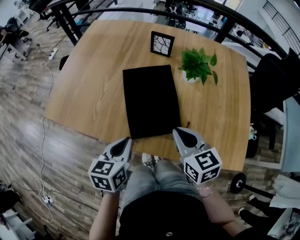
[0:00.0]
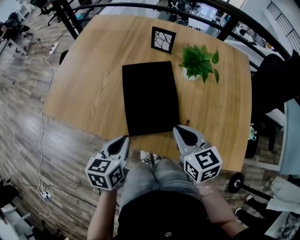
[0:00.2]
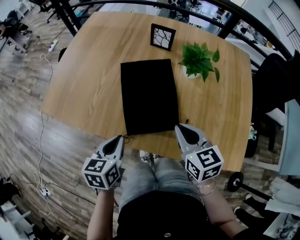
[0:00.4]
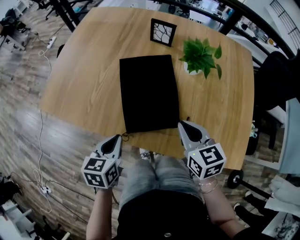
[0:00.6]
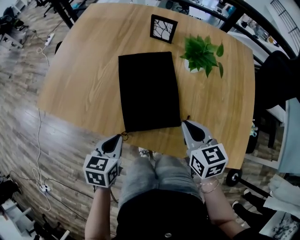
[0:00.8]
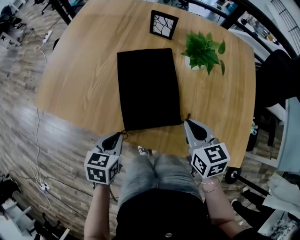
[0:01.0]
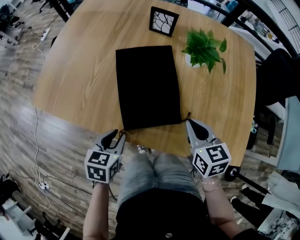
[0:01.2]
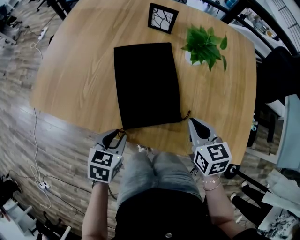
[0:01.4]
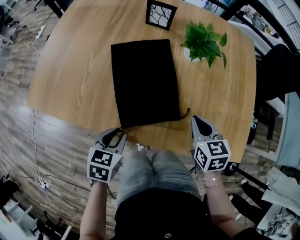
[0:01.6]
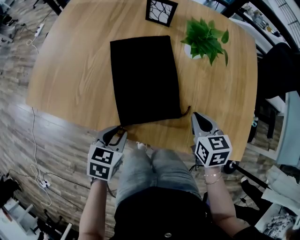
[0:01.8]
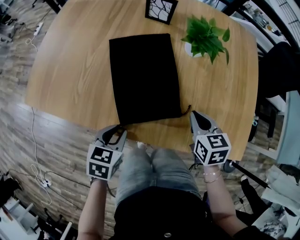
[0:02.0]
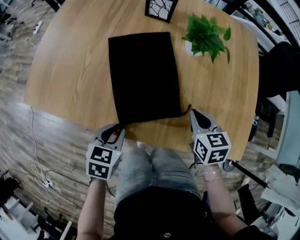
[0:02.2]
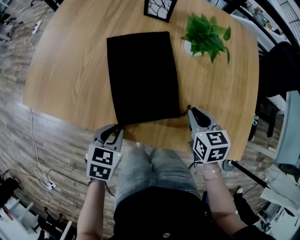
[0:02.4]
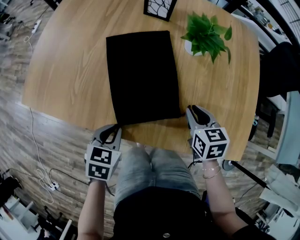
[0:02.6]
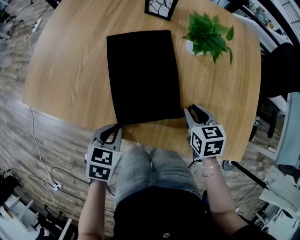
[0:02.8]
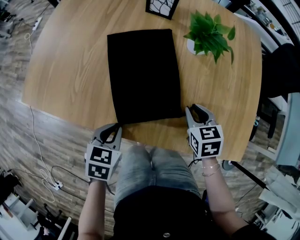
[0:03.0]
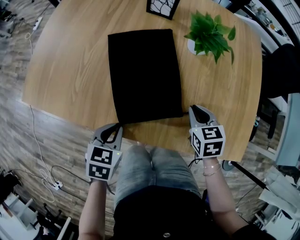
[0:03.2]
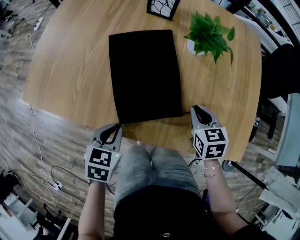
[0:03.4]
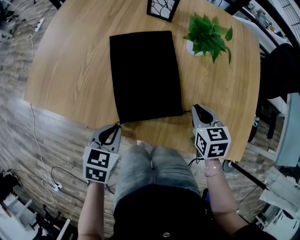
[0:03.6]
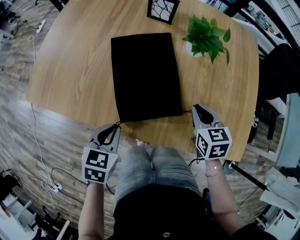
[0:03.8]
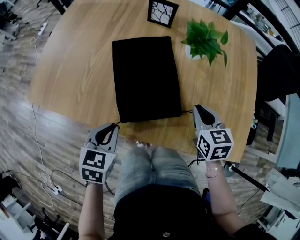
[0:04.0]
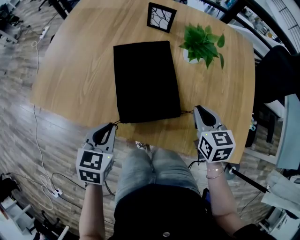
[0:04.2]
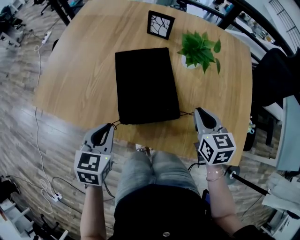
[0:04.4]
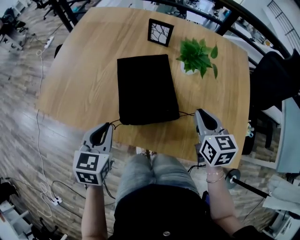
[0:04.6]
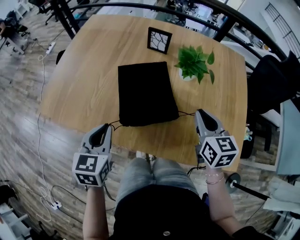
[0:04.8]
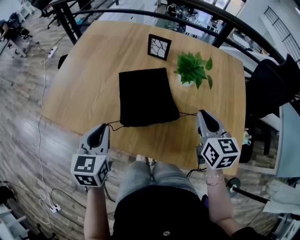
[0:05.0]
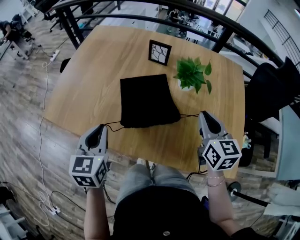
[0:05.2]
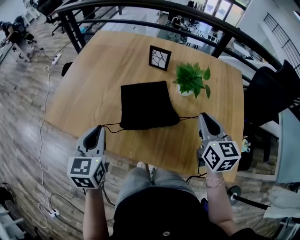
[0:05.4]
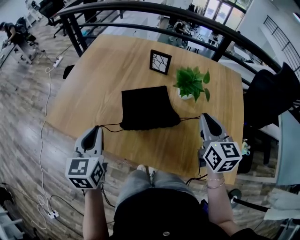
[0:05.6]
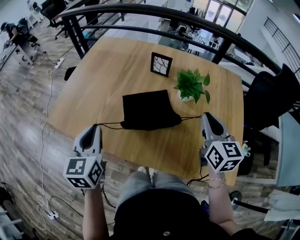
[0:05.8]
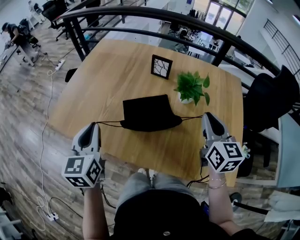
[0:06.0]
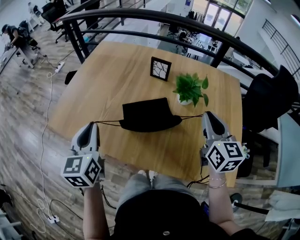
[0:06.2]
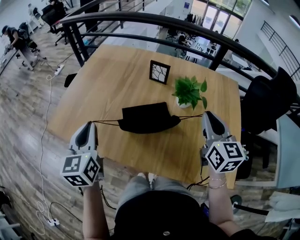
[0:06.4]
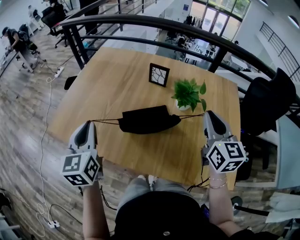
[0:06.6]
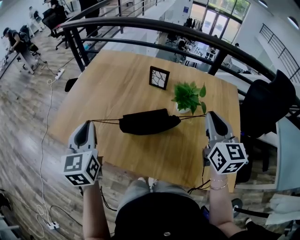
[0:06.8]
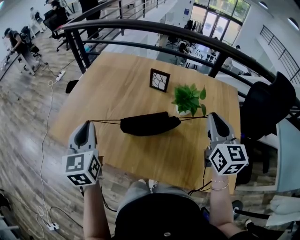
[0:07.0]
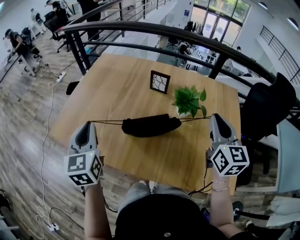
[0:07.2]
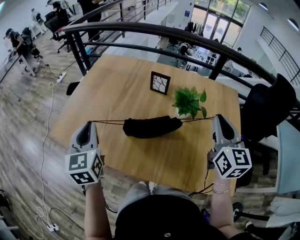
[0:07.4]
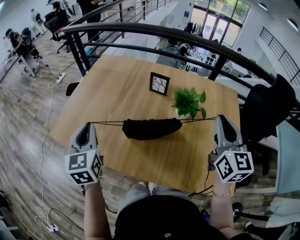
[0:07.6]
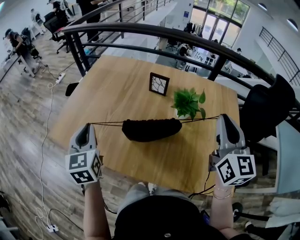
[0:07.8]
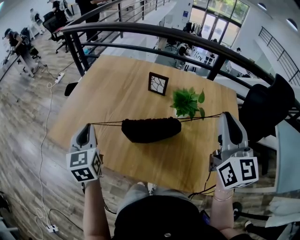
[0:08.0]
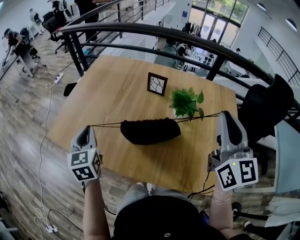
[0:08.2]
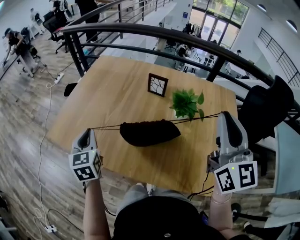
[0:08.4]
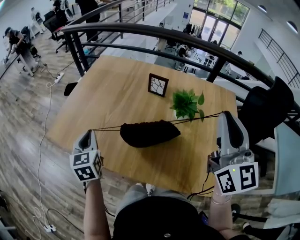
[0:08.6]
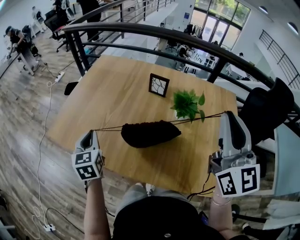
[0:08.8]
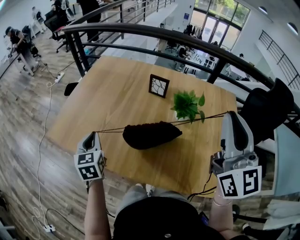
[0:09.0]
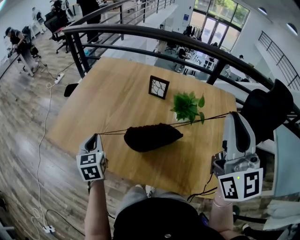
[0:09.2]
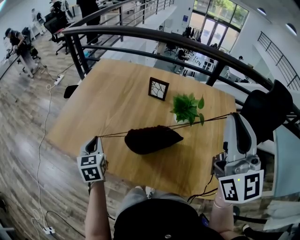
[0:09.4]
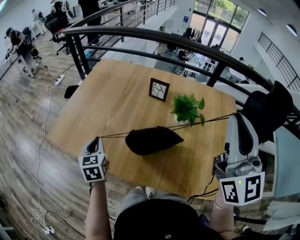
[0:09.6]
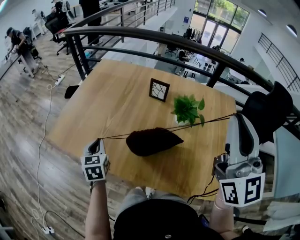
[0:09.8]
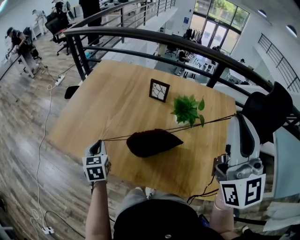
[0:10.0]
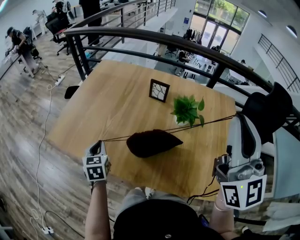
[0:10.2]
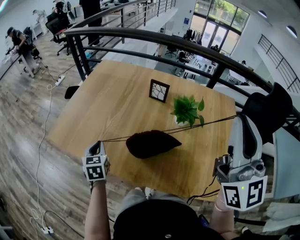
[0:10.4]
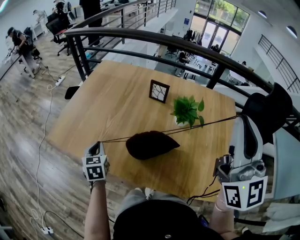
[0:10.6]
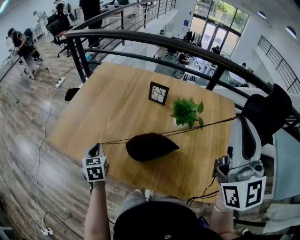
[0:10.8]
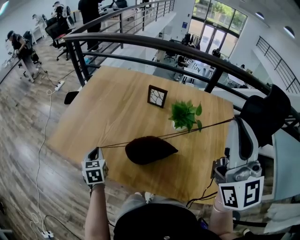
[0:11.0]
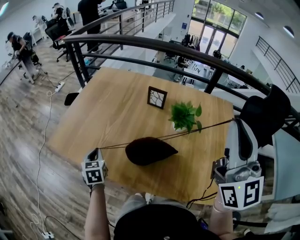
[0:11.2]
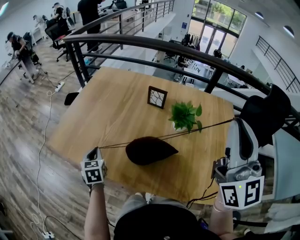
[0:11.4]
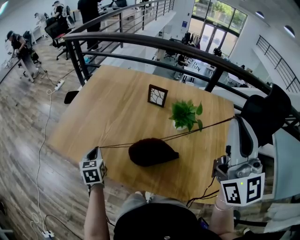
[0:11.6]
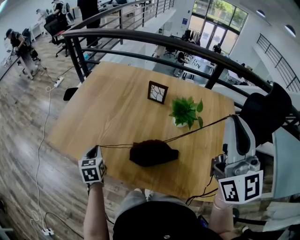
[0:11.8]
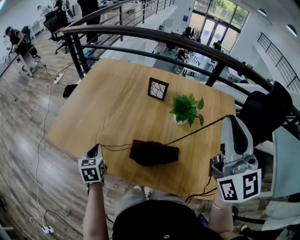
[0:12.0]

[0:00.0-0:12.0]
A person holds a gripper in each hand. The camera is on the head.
0:00.0 to 0:01.6: The left gripper shifts some 10 cm downward, swivels approximately 20 degrees, and opens its fingers. The right gripper is displaced to the right and downward by some 15 cm.
0:01.6 to 0:03.0: The right gripper is displaced downward by about 5 cm, and opens.
0:03.0 to 0:04.4: The grippers both shift upward by approximately 10 cm.
0:04.4 to 0:06.0: The right gripper shifts some 15 cm upward, and swivels about 20 degrees. Meanwhile the left gripper heads upward and to the left, covering roughly 15 cm, and turns by about 30 degrees.
0:06.0 to 0:07.6: The right gripper travels upward by roughly 10 cm; the left gripper moves roughly 5 cm.
0:07.6 to 0:09.0: The left gripper goes roughly 10 cm downward; the right gripper shifts about 10 cm upward.
0:09.0 to 0:10.4: The right gripper shifts by about 5 cm; the left gripper travels downward by about 5 cm.
0:10.4 to 0:12.0: The grippers move only a little.

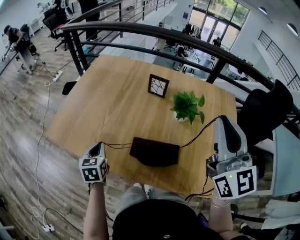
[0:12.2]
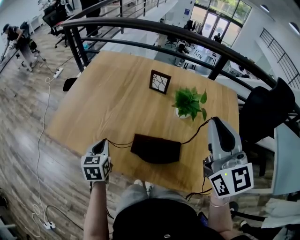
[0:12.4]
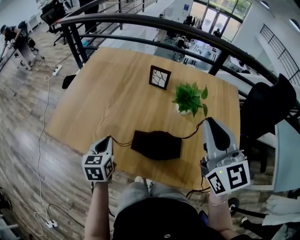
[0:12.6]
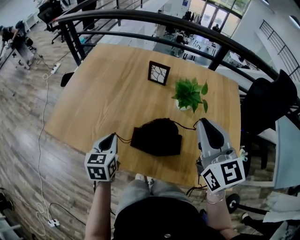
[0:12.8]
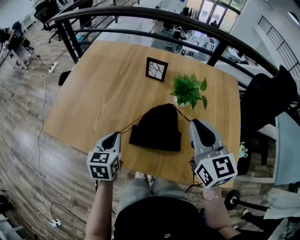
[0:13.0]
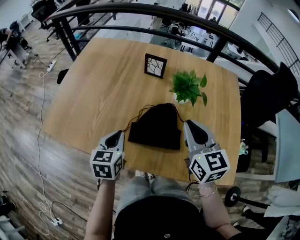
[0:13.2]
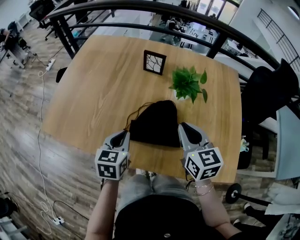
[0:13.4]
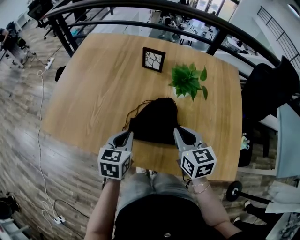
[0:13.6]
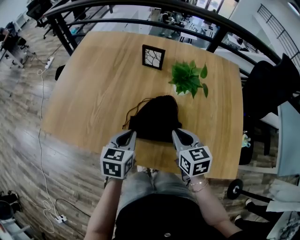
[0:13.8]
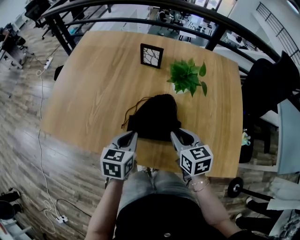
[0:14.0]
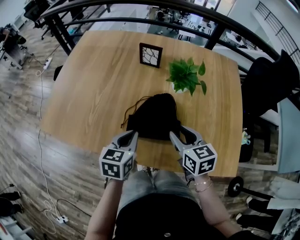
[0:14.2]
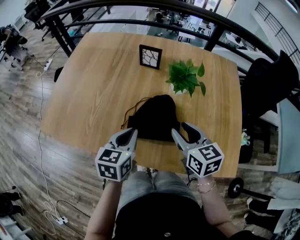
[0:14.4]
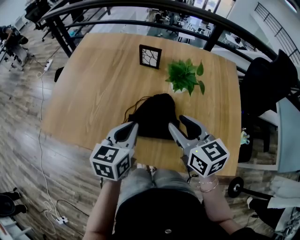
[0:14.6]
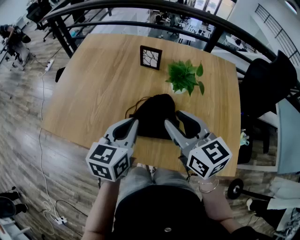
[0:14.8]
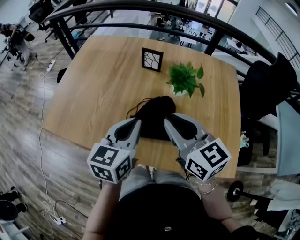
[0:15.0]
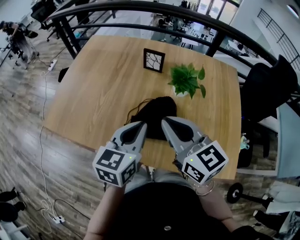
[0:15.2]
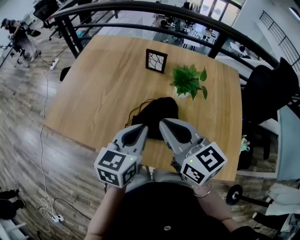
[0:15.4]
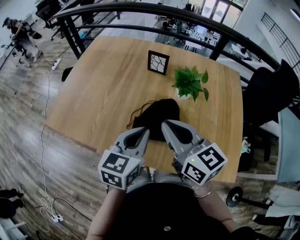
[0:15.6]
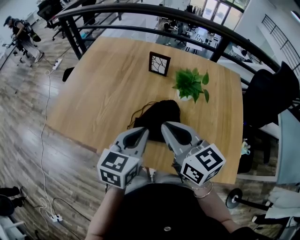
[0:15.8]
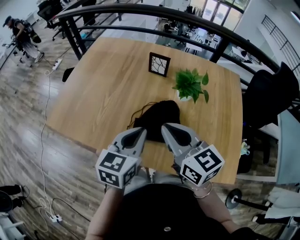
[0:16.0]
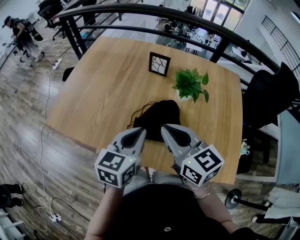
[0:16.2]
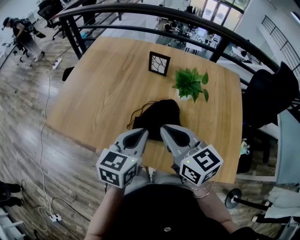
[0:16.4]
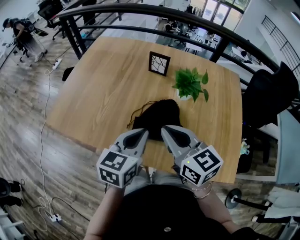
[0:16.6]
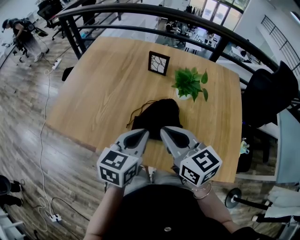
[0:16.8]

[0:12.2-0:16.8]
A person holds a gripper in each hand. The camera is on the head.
0:12.2 to 0:13.8: The right gripper heads downward, covering roughly 30 cm, and tips its fingers downward by approximately 40 degrees, while the left gripper travels to the right by some 15 cm, and turns by about 20 degrees.
0:13.8 to 0:15.2: The grippers both shift upward by approximately 15 cm. The right gripper changes its angle by approximately 30 degrees, and opens, then closes again.
0:15.2 to 0:16.8: The grippers move only a little.

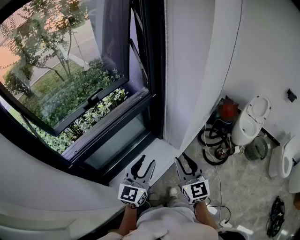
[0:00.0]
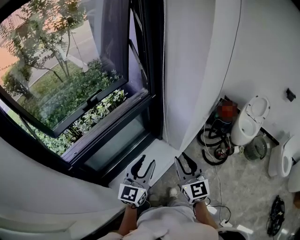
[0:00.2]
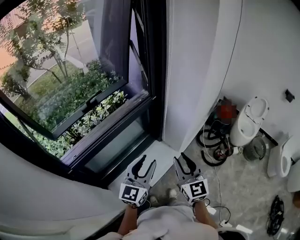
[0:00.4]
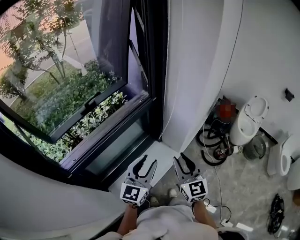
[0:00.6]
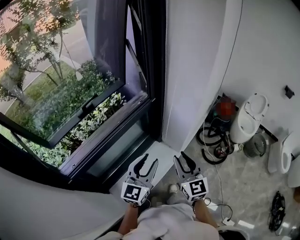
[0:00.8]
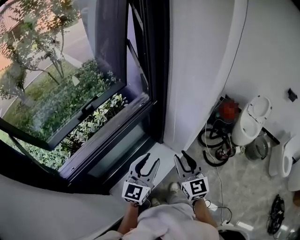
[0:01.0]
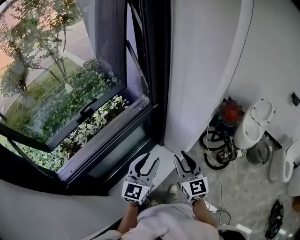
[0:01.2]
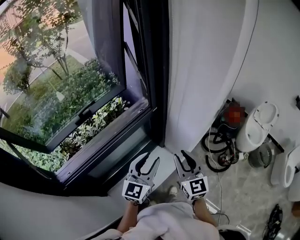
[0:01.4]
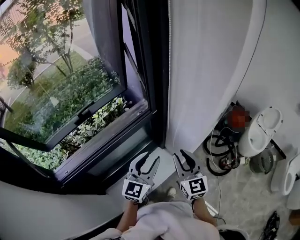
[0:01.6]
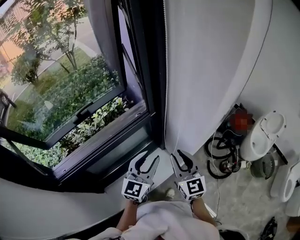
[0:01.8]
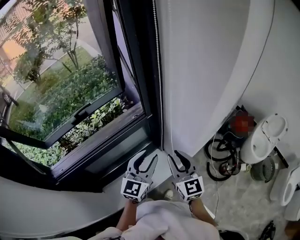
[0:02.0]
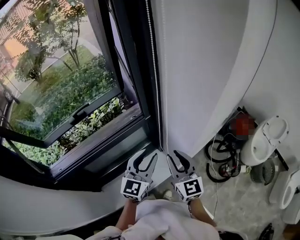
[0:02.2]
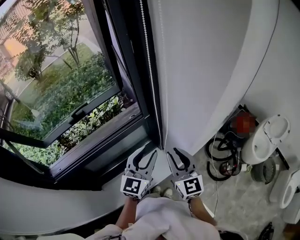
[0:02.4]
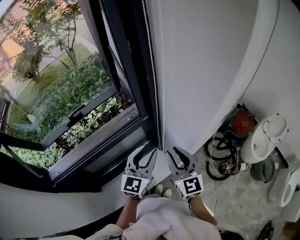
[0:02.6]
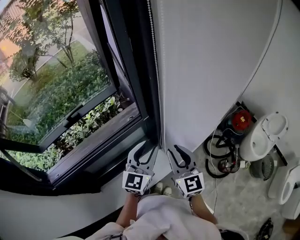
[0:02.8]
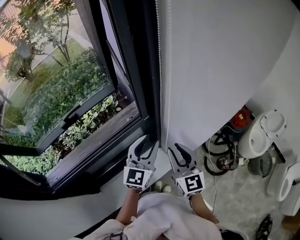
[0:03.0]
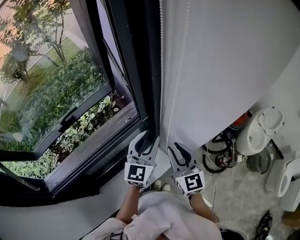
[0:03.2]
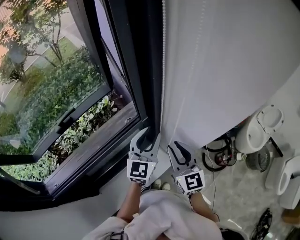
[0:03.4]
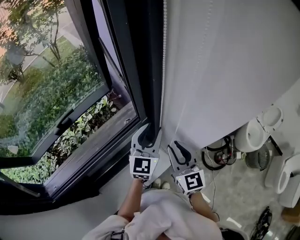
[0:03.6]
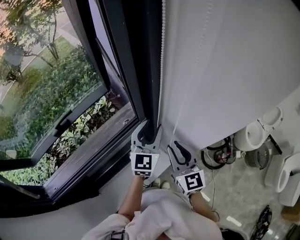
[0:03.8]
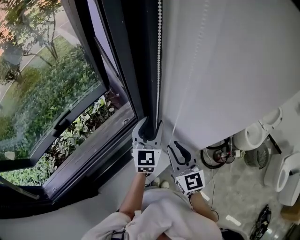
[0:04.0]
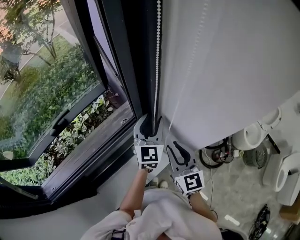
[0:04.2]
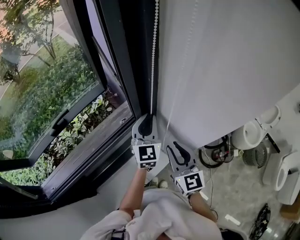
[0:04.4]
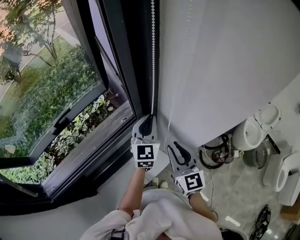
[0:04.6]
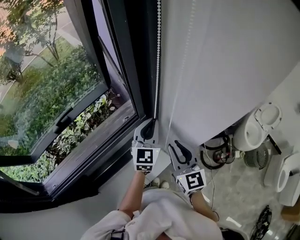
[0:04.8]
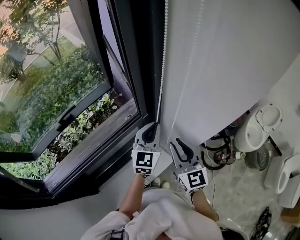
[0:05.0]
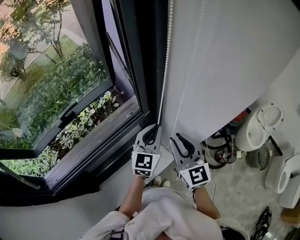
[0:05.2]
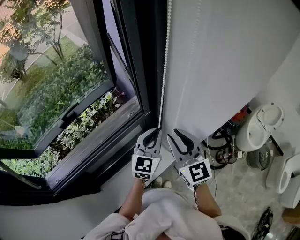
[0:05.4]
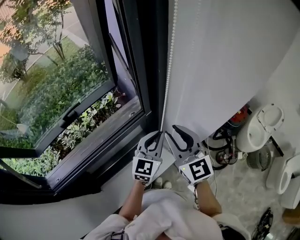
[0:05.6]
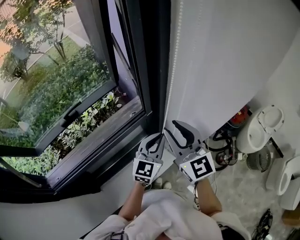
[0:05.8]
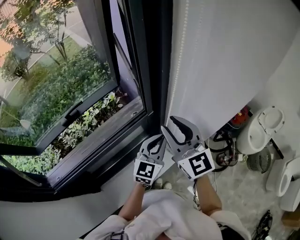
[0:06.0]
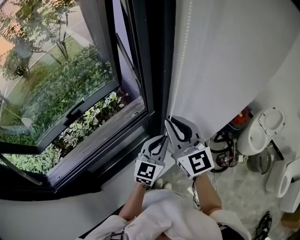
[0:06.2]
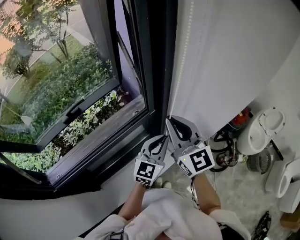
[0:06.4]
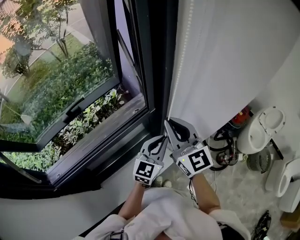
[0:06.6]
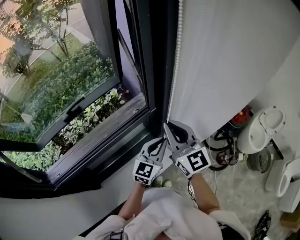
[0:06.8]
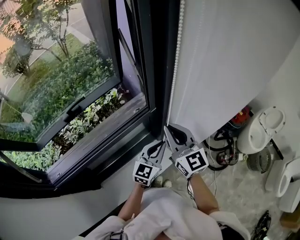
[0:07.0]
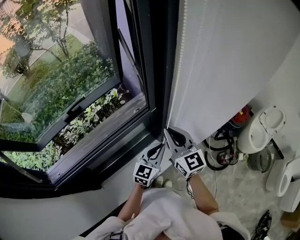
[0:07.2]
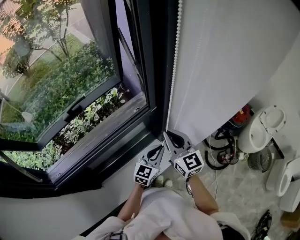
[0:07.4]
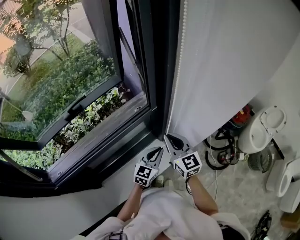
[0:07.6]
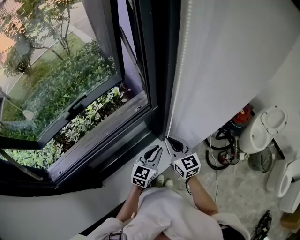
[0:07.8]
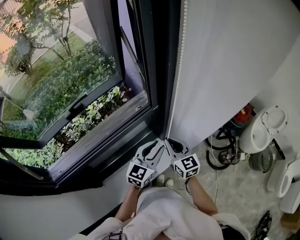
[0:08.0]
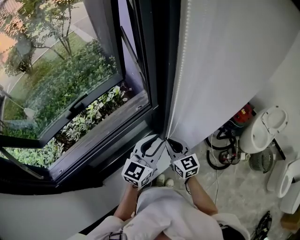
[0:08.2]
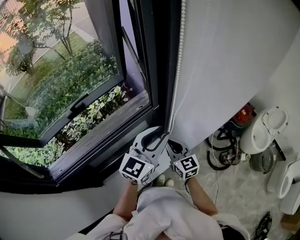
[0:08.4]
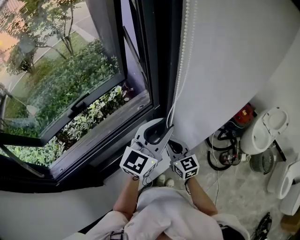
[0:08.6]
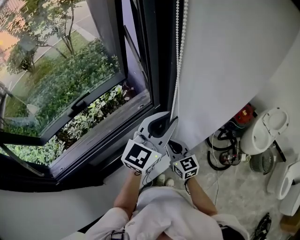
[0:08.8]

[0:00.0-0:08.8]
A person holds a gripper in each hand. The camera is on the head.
0:00.0 to 0:01.4: Both grippers travel together forward, some 15 cm.
0:01.4 to 0:03.0: The right gripper travels forward by approximately 10 cm; the left gripper goes some 15 cm forward and to the right.
0:03.0 to 0:04.4: The left gripper goes some 10 cm forward, and closes up.
0:04.4 to 0:05.8: The right gripper moves upward, about 10 cm; the left gripper travels backward by roughly 10 cm.
0:05.8 to 0:07.4: Both grippers travel together downward, approximately 10 cm. The right gripper closes up.
0:07.4 to 0:08.8: The left gripper moves upward, roughly 25 cm. The right gripper travels downward by roughly 10 cm.
